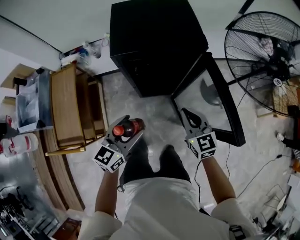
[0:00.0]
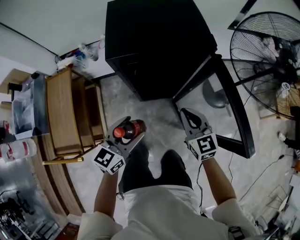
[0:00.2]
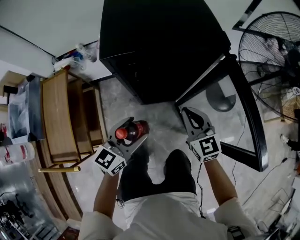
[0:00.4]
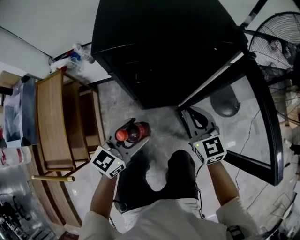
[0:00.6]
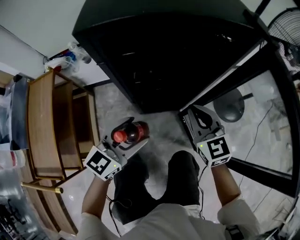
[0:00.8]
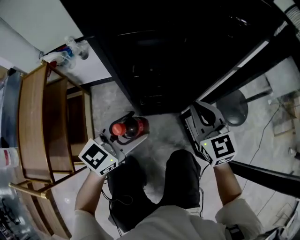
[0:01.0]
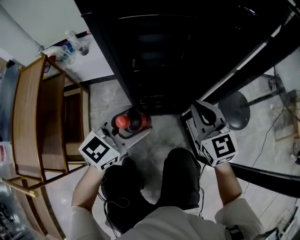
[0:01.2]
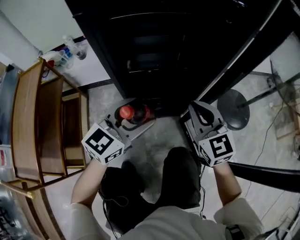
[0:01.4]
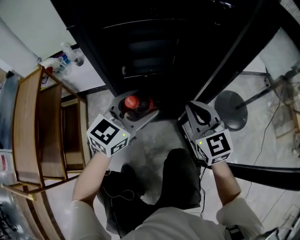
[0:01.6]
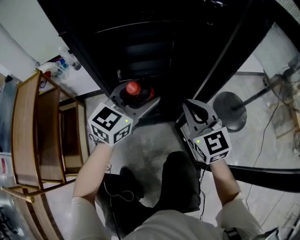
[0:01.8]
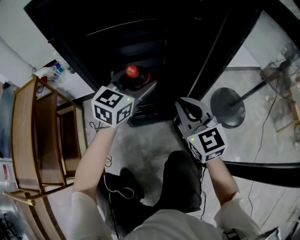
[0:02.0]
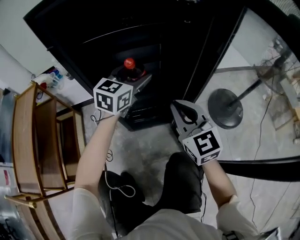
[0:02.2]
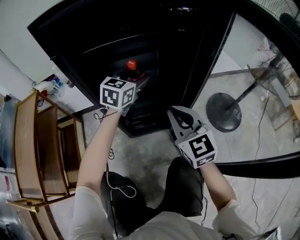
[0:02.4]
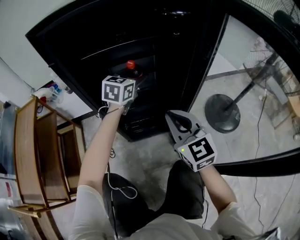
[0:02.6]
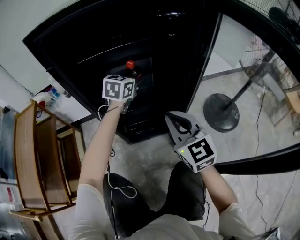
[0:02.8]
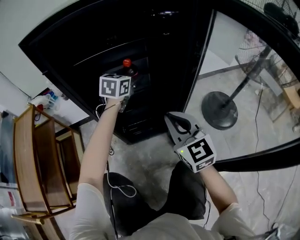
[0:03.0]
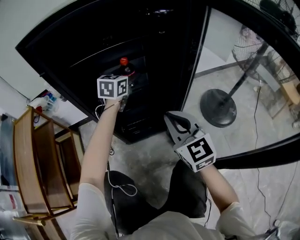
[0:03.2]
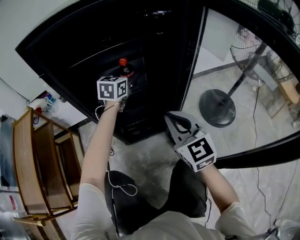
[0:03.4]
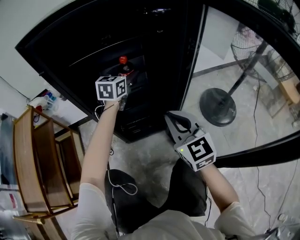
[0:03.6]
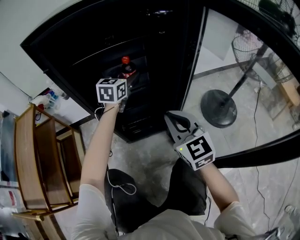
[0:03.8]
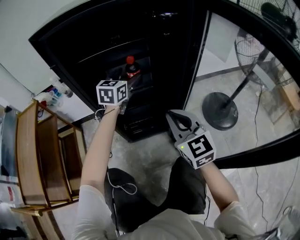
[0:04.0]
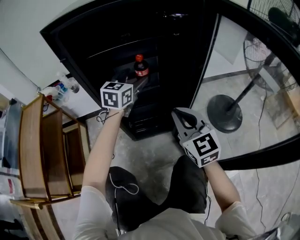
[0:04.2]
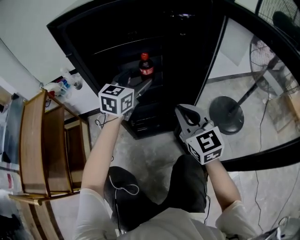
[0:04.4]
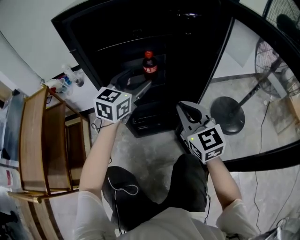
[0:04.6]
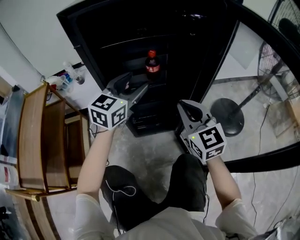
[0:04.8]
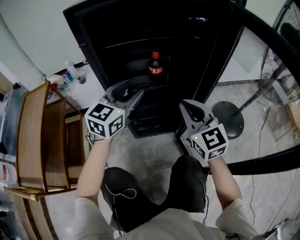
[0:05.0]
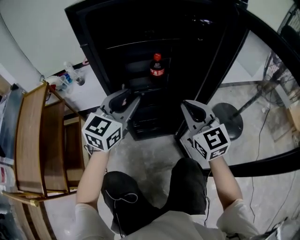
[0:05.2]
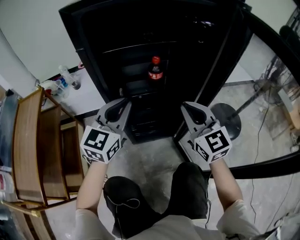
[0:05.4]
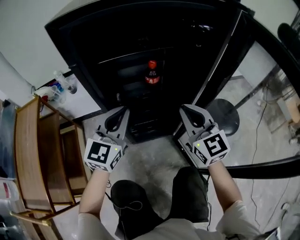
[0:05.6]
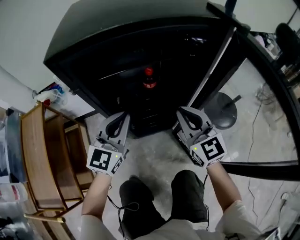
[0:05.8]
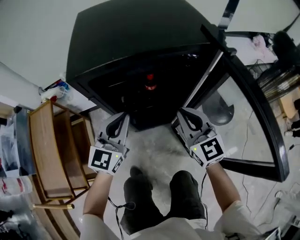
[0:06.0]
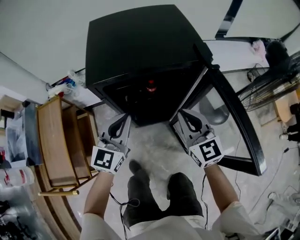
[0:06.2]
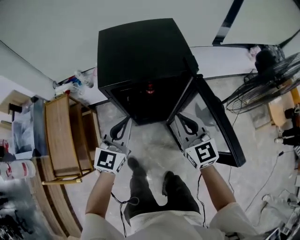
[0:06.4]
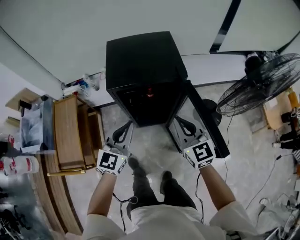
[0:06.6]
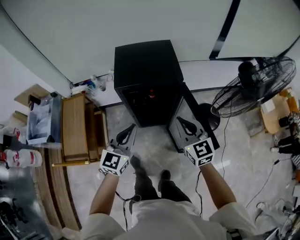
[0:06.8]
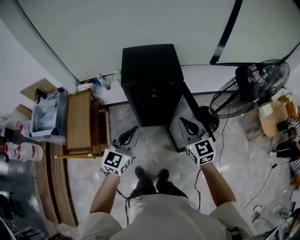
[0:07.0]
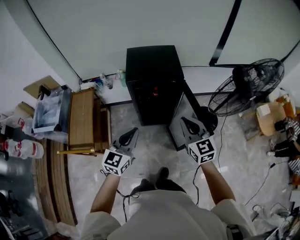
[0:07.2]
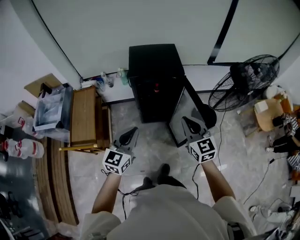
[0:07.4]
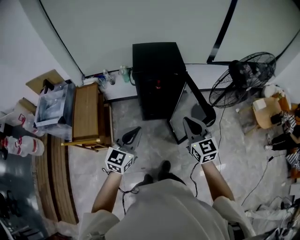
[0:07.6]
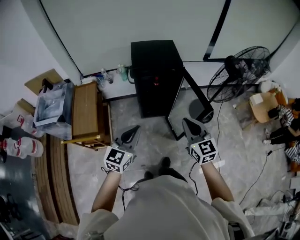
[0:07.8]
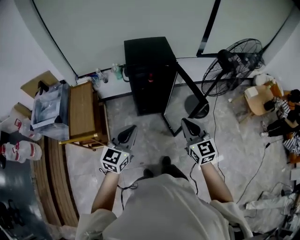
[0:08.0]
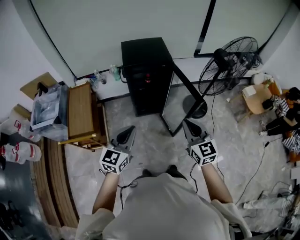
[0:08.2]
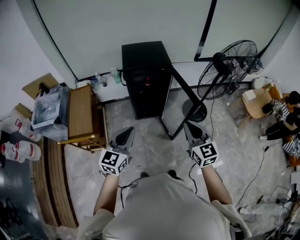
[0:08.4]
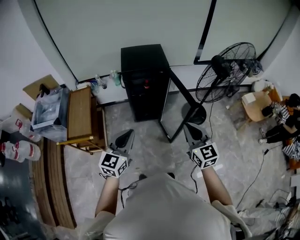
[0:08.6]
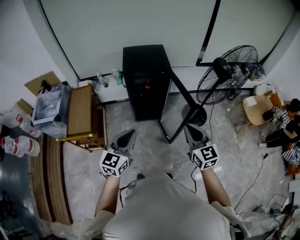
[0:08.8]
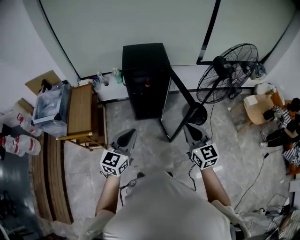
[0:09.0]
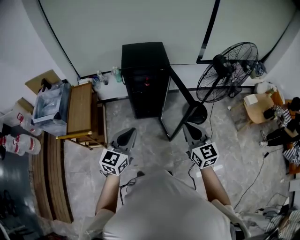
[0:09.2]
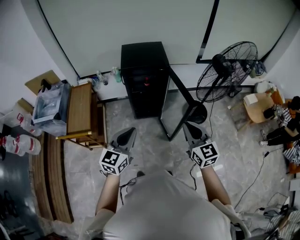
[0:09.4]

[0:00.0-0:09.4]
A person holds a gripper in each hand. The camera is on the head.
0:00.0 to 0:01.6: The left gripper goes roughly 35 cm downward and forward, and changes its angle by about 20 degrees. The right gripper goes some 30 cm downward.
0:01.6 to 0:03.2: The left gripper shifts some 20 cm forward.
0:03.2 to 0:04.8: The left gripper shifts roughly 20 cm backward and upward.
0:04.8 to 0:06.2: The right gripper moves upward, about 25 cm; the left gripper travels upward and backward by approximately 20 cm, and closes its fingers.
0:06.2 to 0:07.8: Both grippers travel together backward and upward, some 50 cm.
0:07.8 to 0:09.4: Both grippers move to the right and backward, about 10 cm.

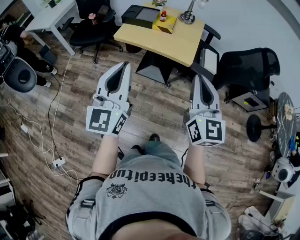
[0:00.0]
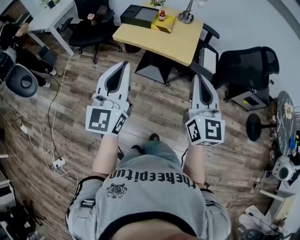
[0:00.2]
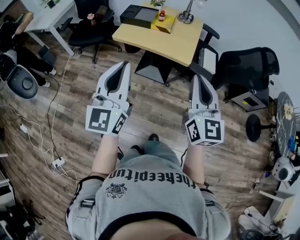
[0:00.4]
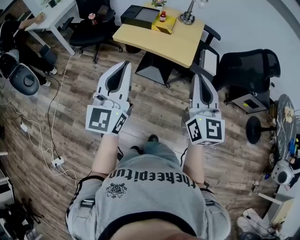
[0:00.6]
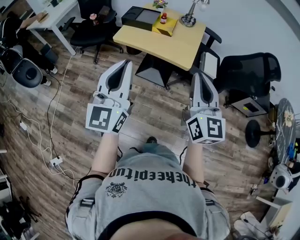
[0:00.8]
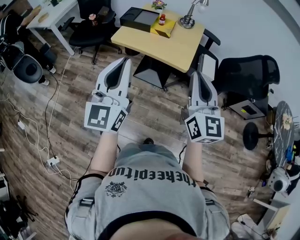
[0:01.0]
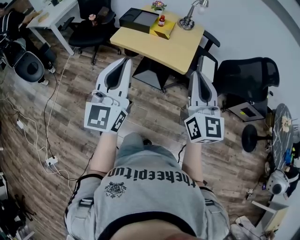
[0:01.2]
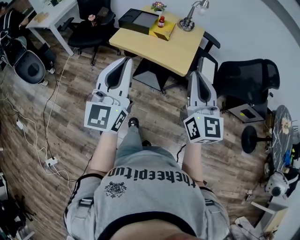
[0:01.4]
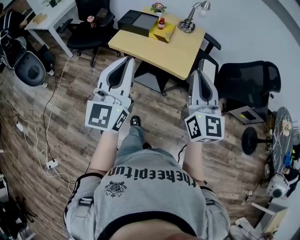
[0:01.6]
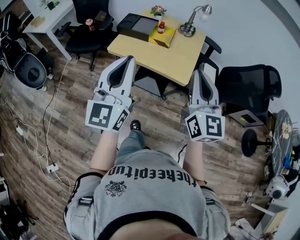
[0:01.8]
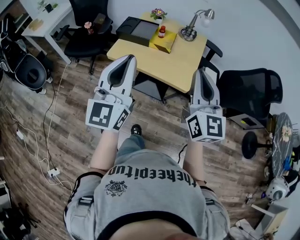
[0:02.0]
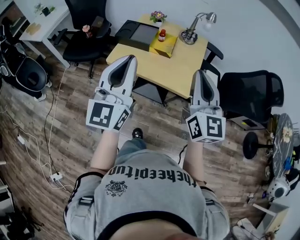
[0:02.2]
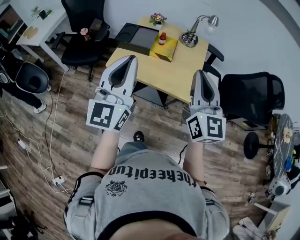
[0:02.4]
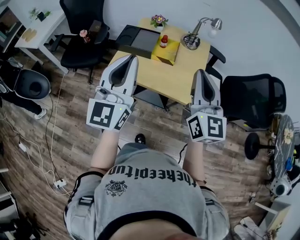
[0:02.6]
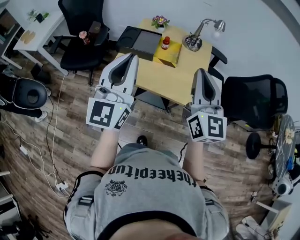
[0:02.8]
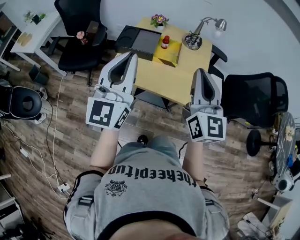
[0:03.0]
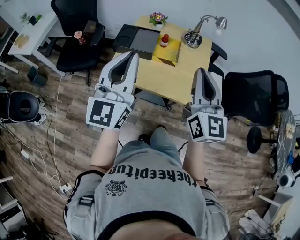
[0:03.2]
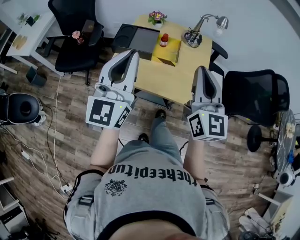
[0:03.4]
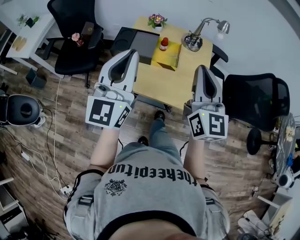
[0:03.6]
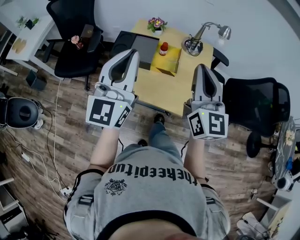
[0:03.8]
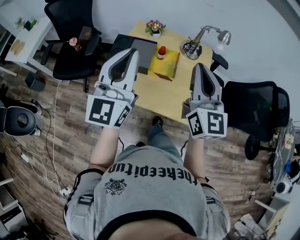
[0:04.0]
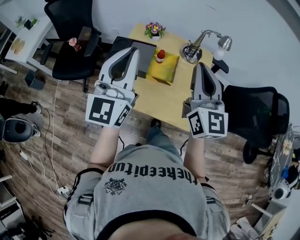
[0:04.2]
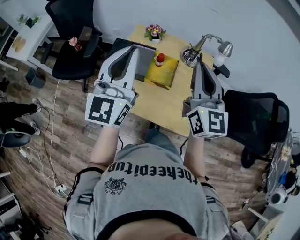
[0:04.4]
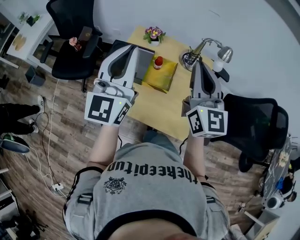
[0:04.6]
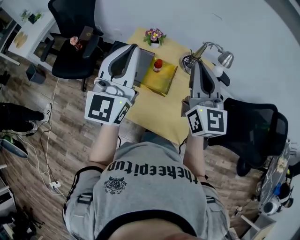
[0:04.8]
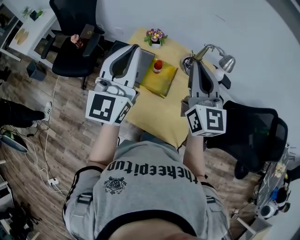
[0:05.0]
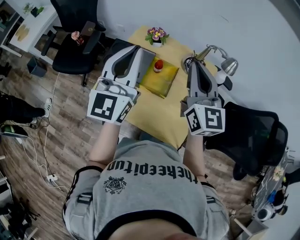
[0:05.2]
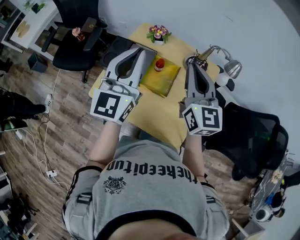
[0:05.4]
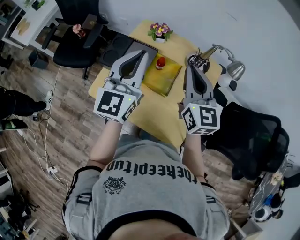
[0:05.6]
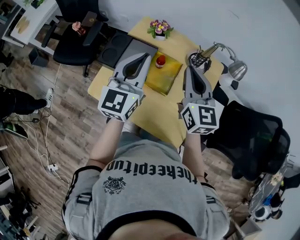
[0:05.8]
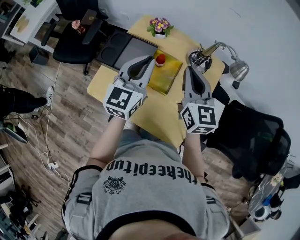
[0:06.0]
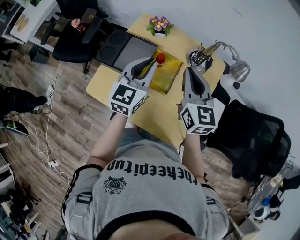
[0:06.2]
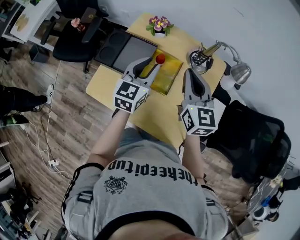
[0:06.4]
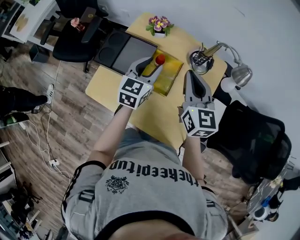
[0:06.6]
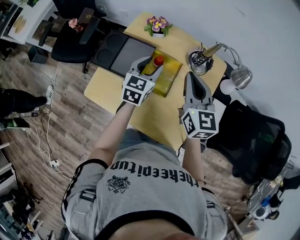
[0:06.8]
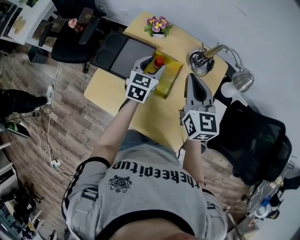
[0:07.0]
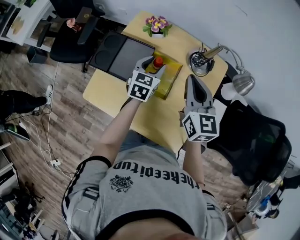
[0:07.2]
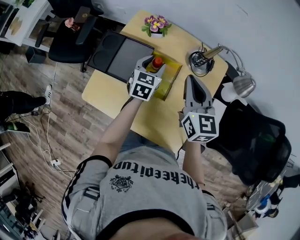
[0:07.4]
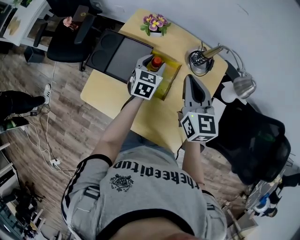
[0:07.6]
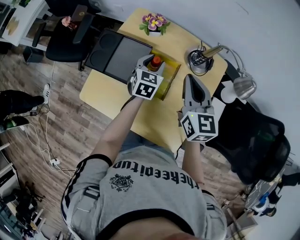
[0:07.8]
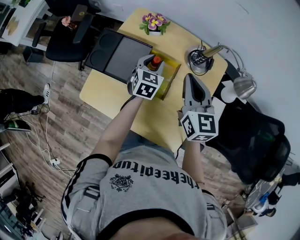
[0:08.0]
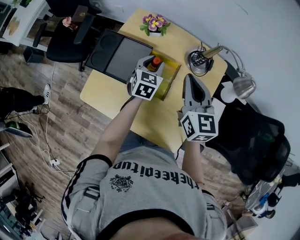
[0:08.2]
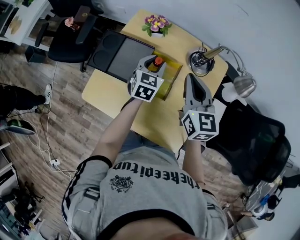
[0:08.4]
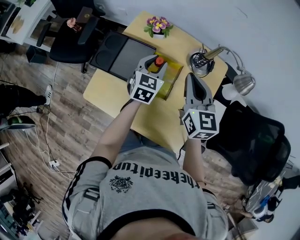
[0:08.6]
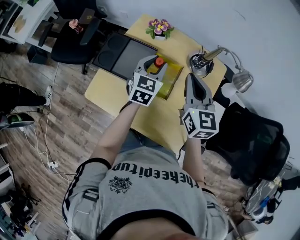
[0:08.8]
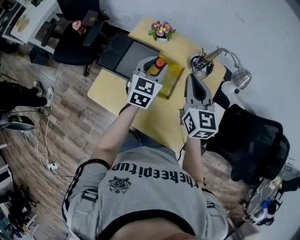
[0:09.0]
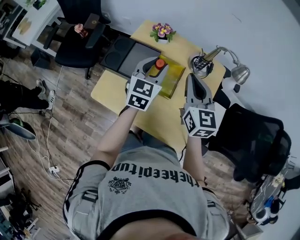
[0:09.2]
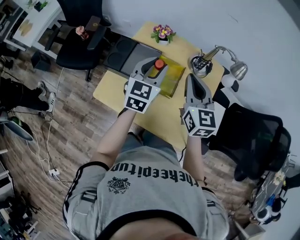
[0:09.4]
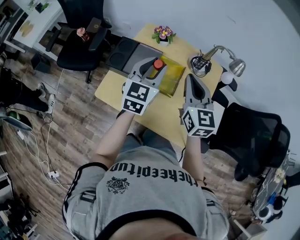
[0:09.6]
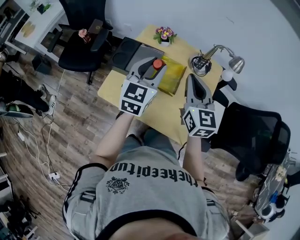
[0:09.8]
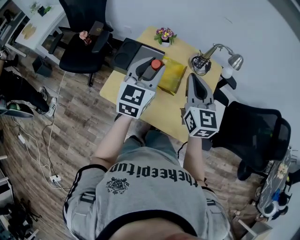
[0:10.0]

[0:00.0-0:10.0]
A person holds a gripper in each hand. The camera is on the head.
0:00.0 to 0:01.4: Both grippers move forward, some 5 cm.
0:01.4 to 0:02.8: The two grippers go approximately 25 cm forward.
0:02.8 to 0:04.2: Both grippers move forward, approximately 20 cm.
0:04.2 to 0:05.8: The left gripper goes roughly 20 cm forward, downward and to the right; the right gripper goes roughly 20 cm forward and downward.
0:05.8 to 0:07.2: The left gripper shifts some 25 cm downward and forward, angles its fingers downward, by some 30 degrees, and opens its fingers, while the right gripper shifts roughly 5 cm downward.
0:07.2 to 0:08.6: The grippers stay close to where they were, moving slightly.
0:08.6 to 0:10.0: The right gripper heads backward and upward, covering about 15 cm; the left gripper travels upward and backward by approximately 25 cm.

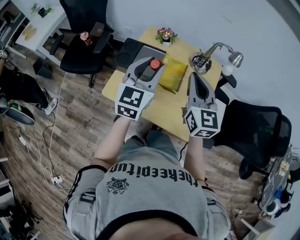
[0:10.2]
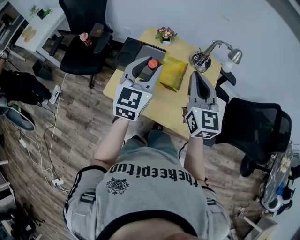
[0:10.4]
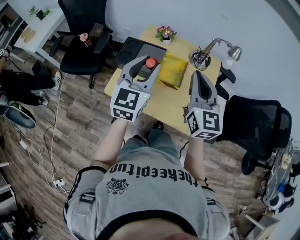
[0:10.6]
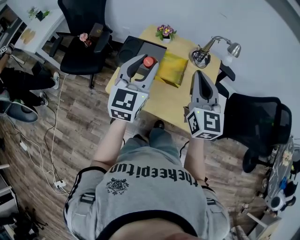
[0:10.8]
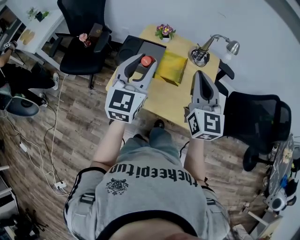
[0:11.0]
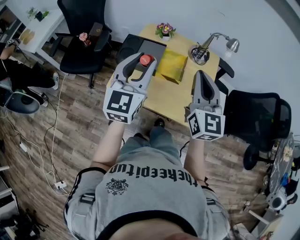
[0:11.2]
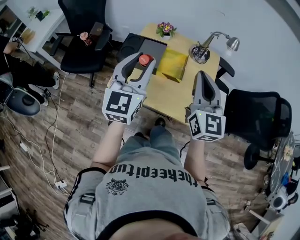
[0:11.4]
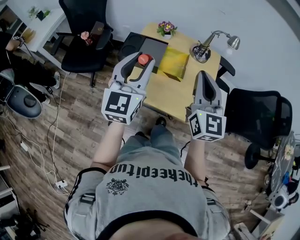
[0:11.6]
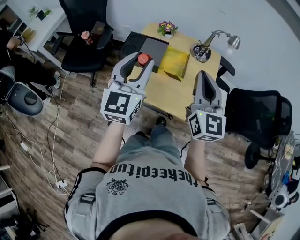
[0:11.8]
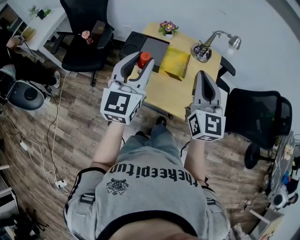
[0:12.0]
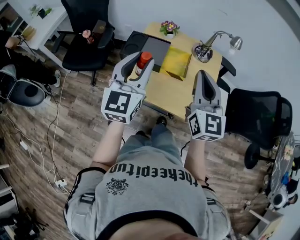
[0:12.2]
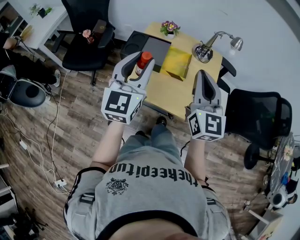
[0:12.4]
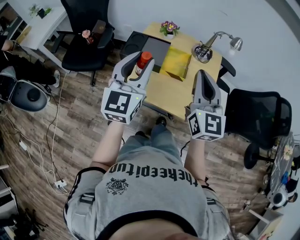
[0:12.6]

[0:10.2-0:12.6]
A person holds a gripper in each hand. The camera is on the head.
0:10.2 to 0:11.4: The right gripper is displaced backward by approximately 10 cm; the left gripper shifts roughly 10 cm backward and to the left.
0:11.4 to 0:12.6: The grippers stay close to where they were, moving slightly.

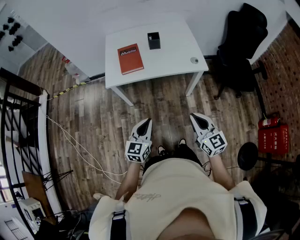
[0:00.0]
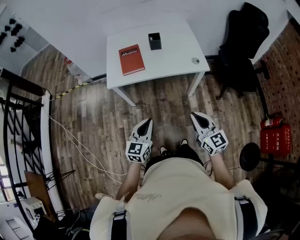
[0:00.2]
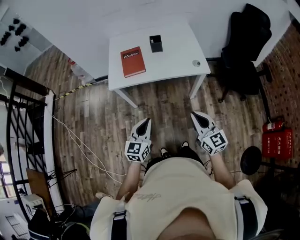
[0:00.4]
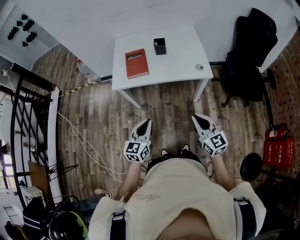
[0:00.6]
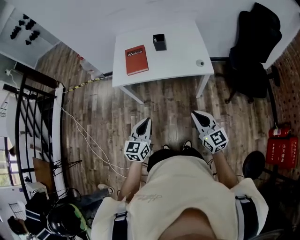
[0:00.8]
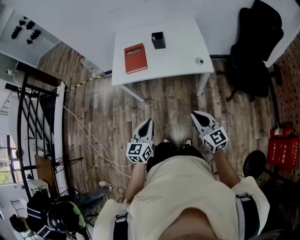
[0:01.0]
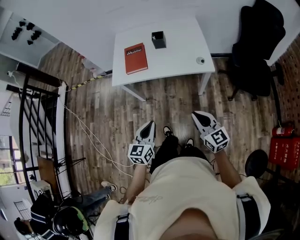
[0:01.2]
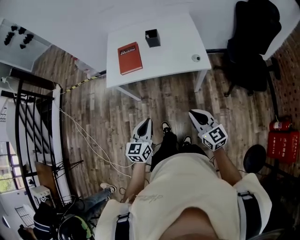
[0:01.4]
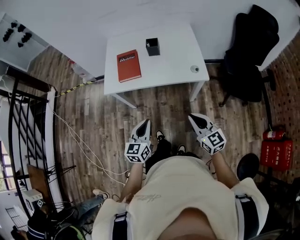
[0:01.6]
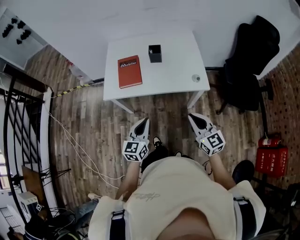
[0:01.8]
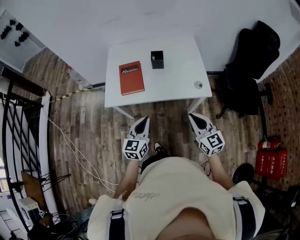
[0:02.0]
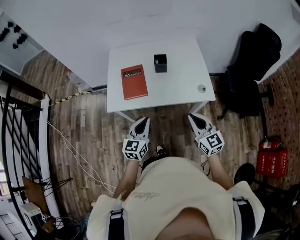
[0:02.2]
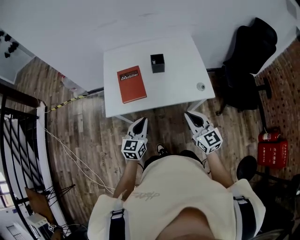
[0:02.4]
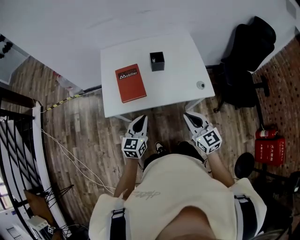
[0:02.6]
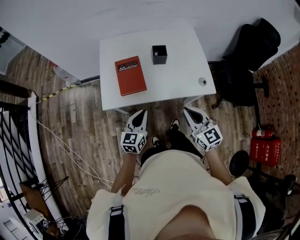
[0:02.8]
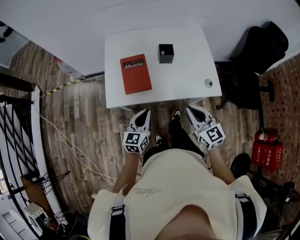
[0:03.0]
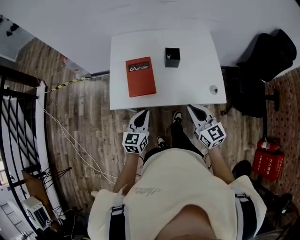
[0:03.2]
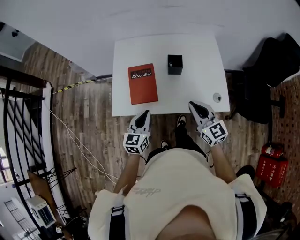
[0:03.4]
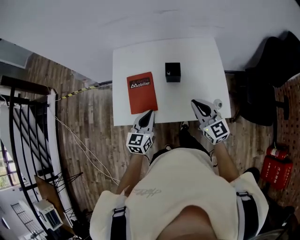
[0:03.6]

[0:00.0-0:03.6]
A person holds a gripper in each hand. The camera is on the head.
0:00.0 to 0:01.8: Both grippers move forward and to the right, roughly 15 cm.
0:01.8 to 0:03.6: Both grippers move forward, approximately 30 cm.
